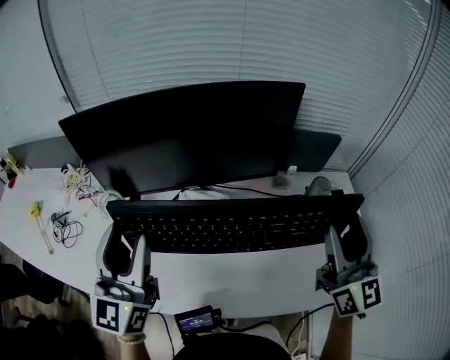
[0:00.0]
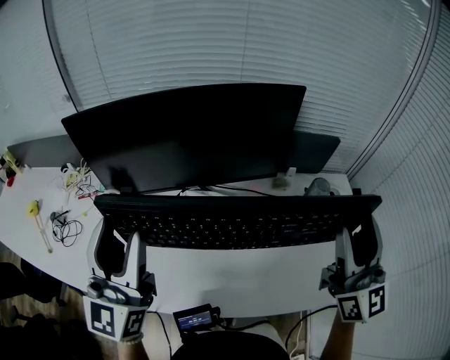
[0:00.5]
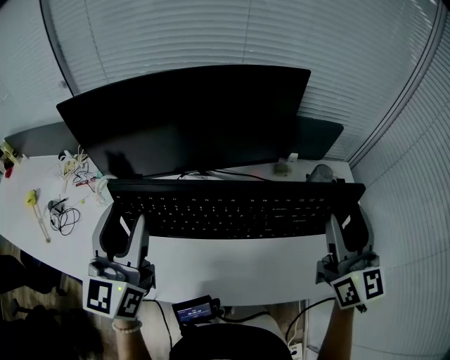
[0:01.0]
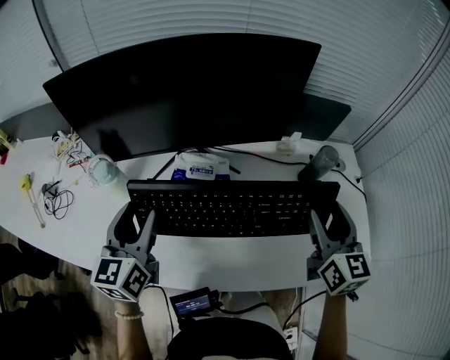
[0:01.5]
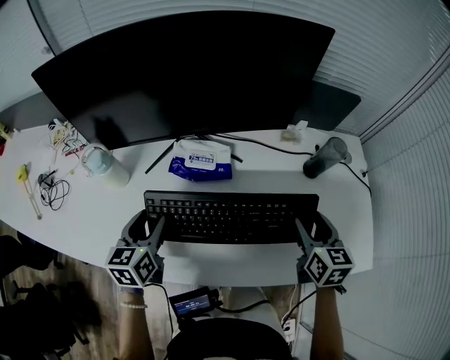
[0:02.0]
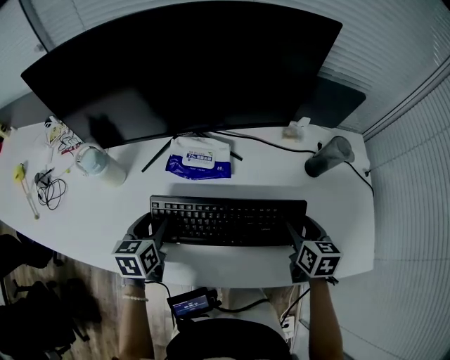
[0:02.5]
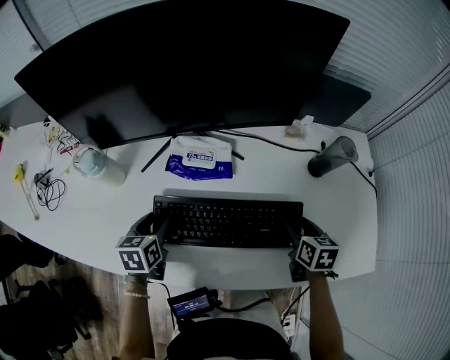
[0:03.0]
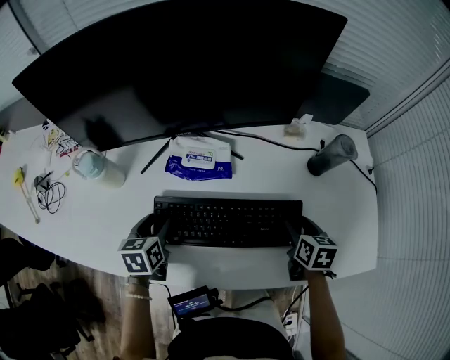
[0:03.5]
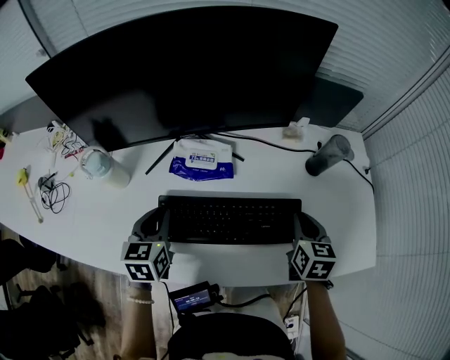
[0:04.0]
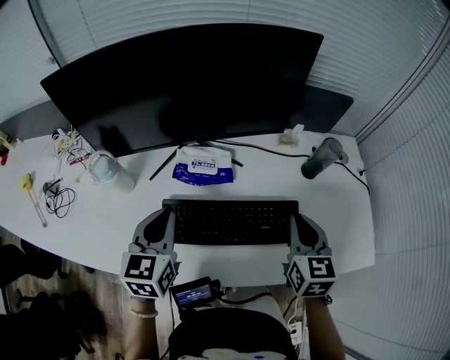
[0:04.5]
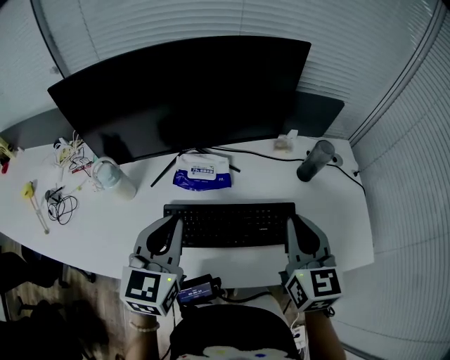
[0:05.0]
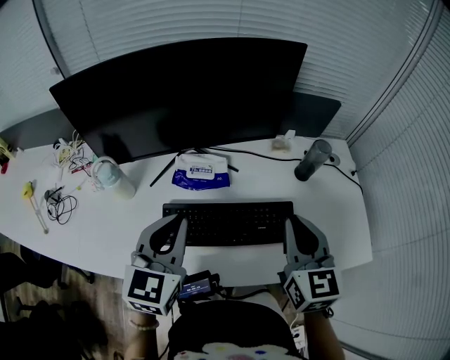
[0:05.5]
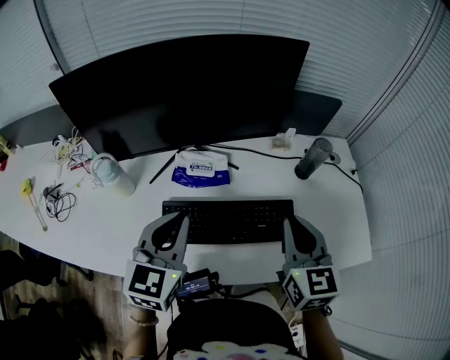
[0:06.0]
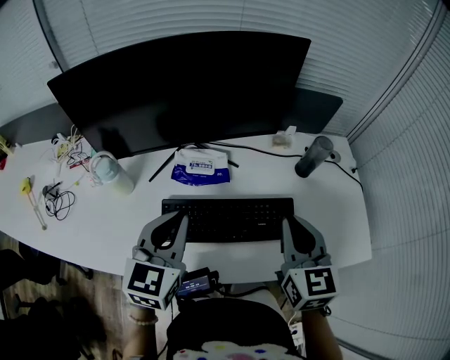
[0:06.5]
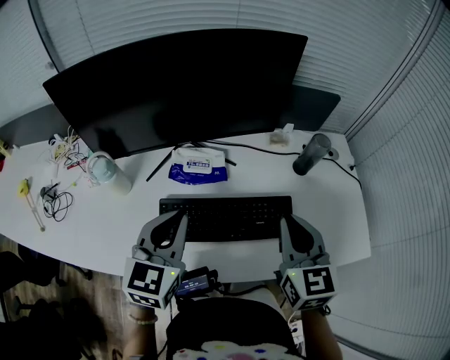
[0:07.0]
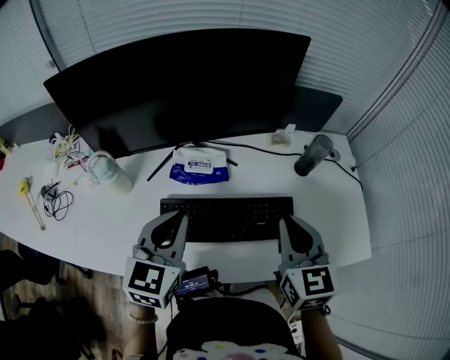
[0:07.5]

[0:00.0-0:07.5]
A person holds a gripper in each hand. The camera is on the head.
0:00.0 to 0:02.0: The grippers both shift downward by about 25 cm. The left gripper tips its fingers downward by about 40 degrees; the right gripper angles its fingers downward, by approximately 40 degrees.
0:02.0 to 0:04.0: The right gripper closes its fingers. Meanwhile the left gripper goes downward and returns, about 10 cm each way, and closes.
0:04.0 to 0:05.5: The right gripper travels upward and to the left by some 20 cm, and turns by about 20 degrees. The left gripper goes about 20 cm upward and to the right, and rotates some 30 degrees.
0:05.5 to 0:07.5: The grippers make only small movements.

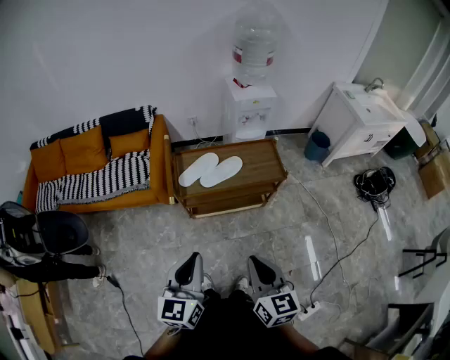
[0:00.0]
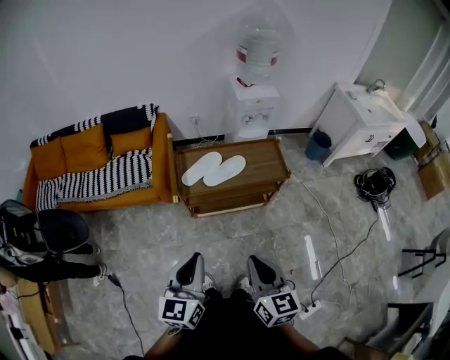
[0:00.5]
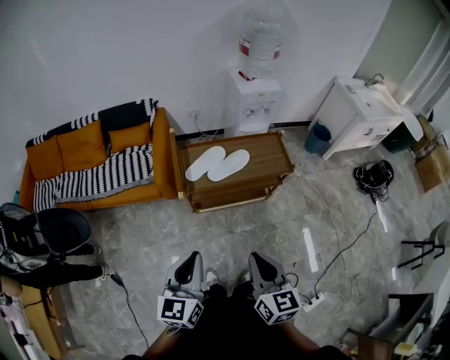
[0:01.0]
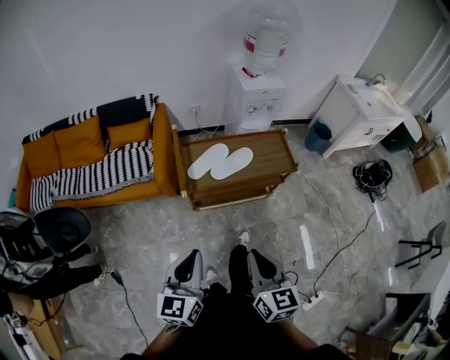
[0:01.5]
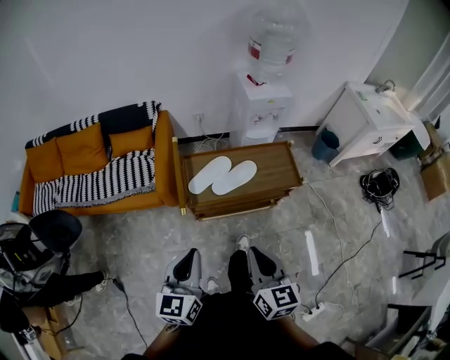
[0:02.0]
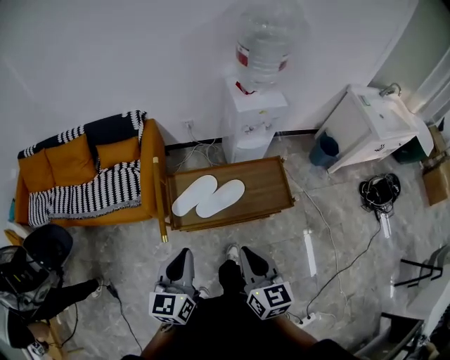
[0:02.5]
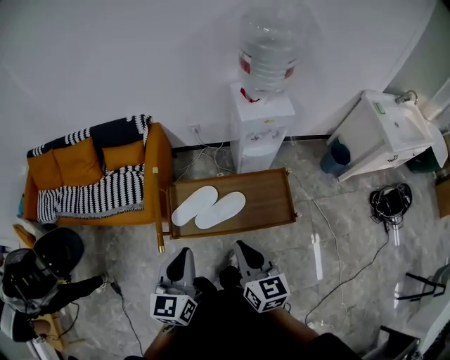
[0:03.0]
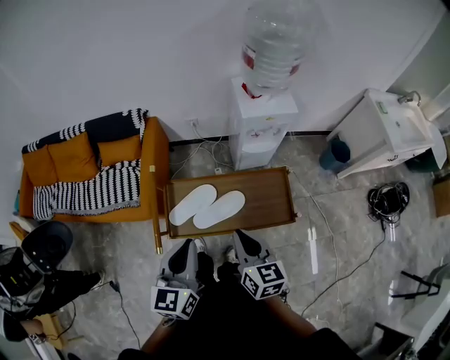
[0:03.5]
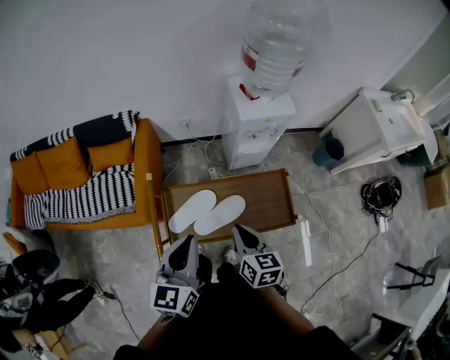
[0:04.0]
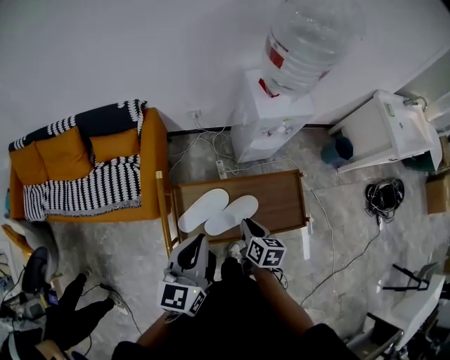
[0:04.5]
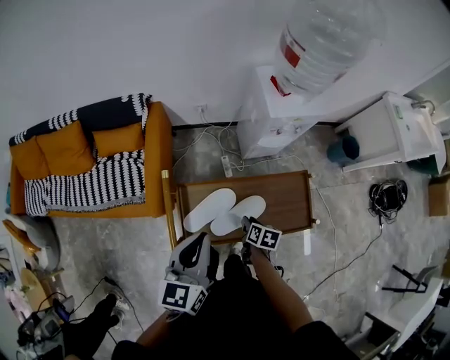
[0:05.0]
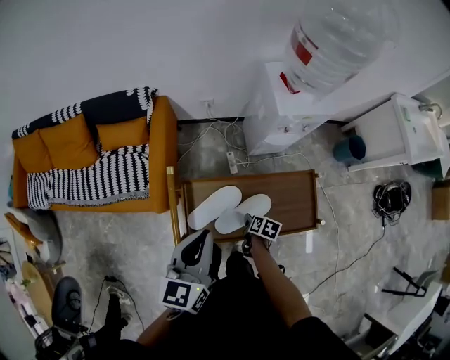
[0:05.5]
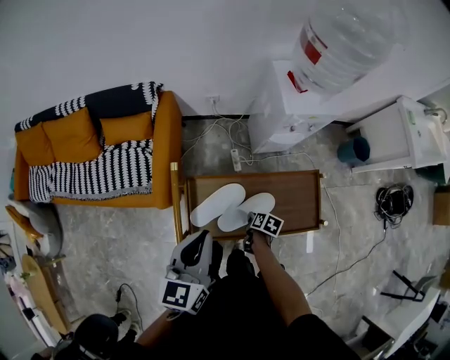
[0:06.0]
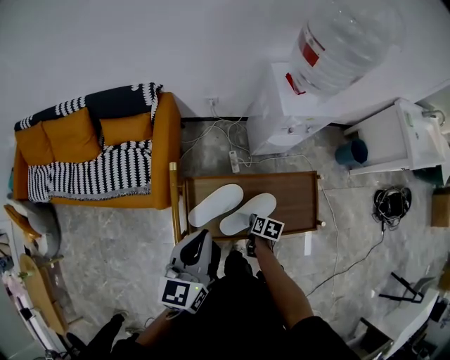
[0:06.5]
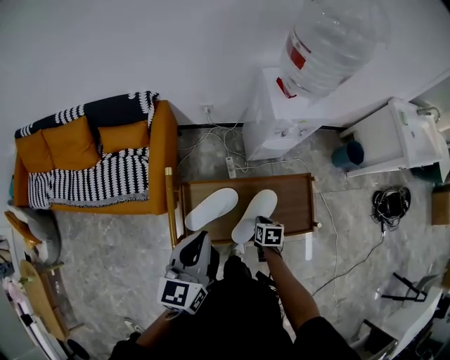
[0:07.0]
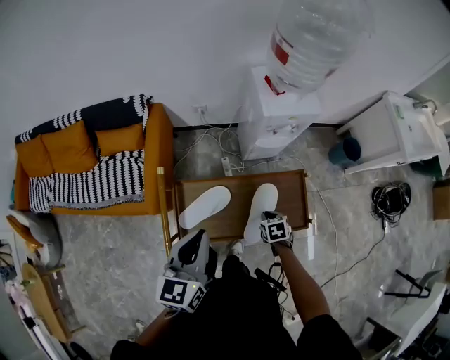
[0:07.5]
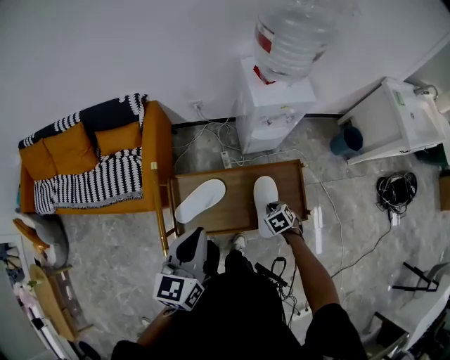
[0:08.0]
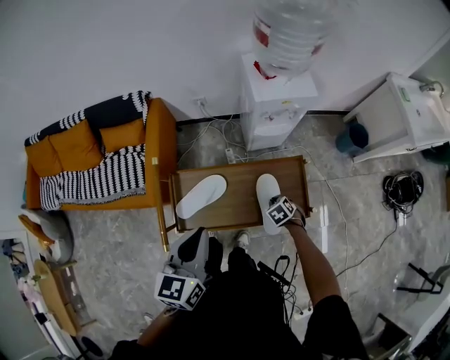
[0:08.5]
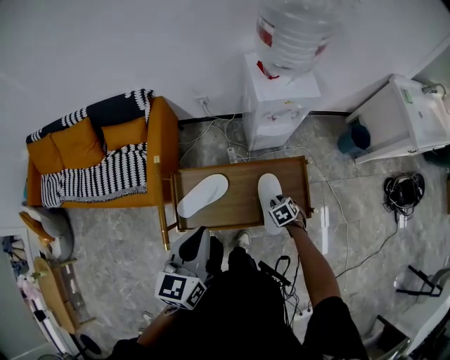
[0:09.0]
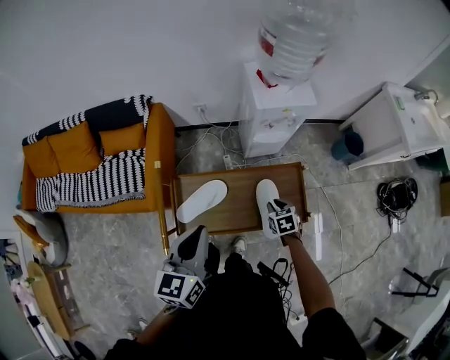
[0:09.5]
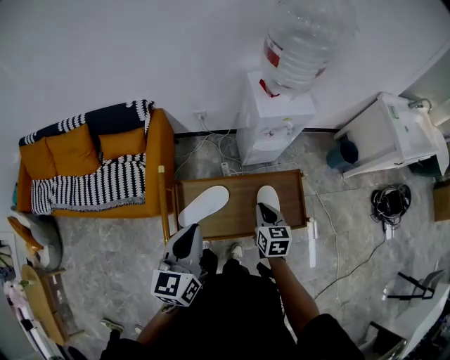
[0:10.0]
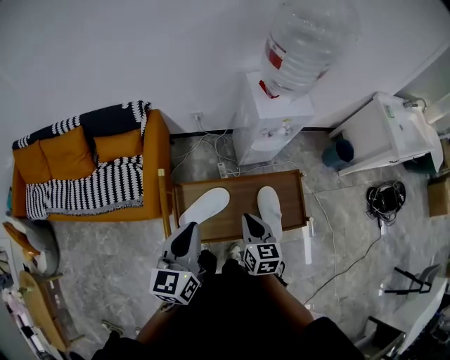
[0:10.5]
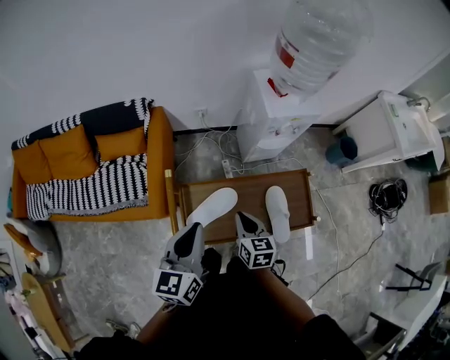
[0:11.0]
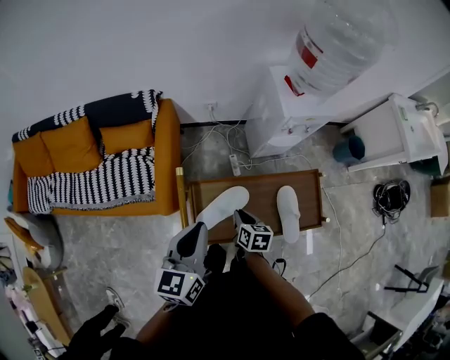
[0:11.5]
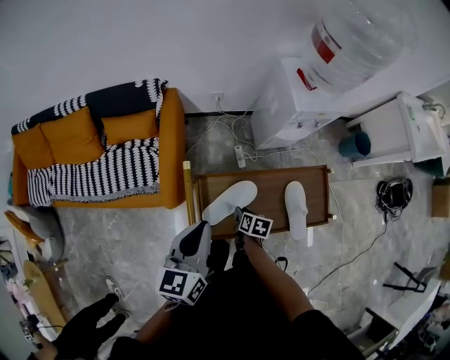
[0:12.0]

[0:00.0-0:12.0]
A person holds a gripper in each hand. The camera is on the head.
0:00.0 to 0:02.0: Both grippers move forward and to the left, some 15 cm.
0:02.0 to 0:04.0: The two grippers go some 30 cm forward.
0:04.0 to 0:06.0: The right gripper goes about 30 cm downward, and angles its fingers downward, by some 40 degrees, while the left gripper travels to the left and forward by approximately 10 cm.
0:06.0 to 0:08.0: The left gripper is displaced to the right by roughly 10 cm. Meanwhile the right gripper moves to the right and upward, some 15 cm, and rotates around the line of its fingers by about 60 degrees, counterclockwise from behind.
0:08.0 to 0:10.0: The right gripper moves upward and to the left, roughly 15 cm, and points its fingers roughly 30 degrees further upward.
0:10.0 to 0:12.0: The right gripper goes approximately 25 cm downward and to the left, and swivels approximately 40 degrees, while the left gripper shifts about 10 cm to the left and forward.

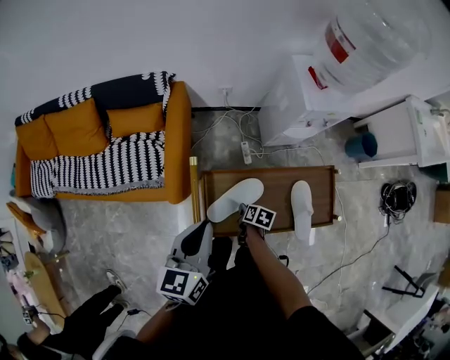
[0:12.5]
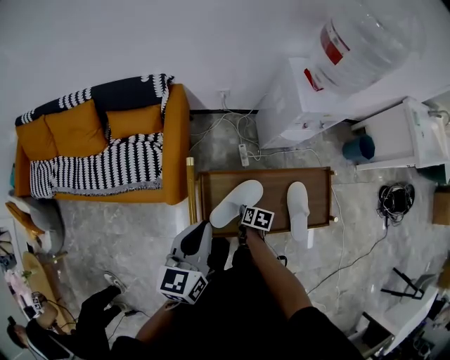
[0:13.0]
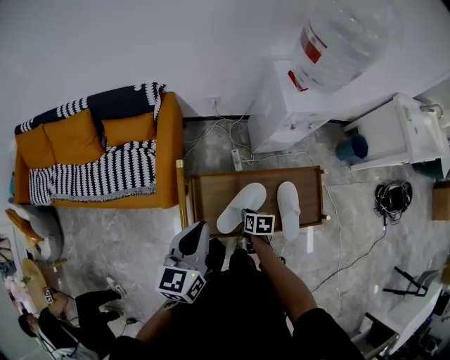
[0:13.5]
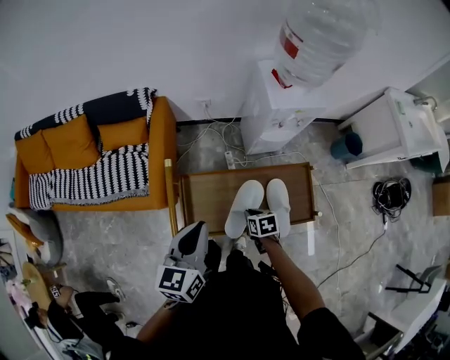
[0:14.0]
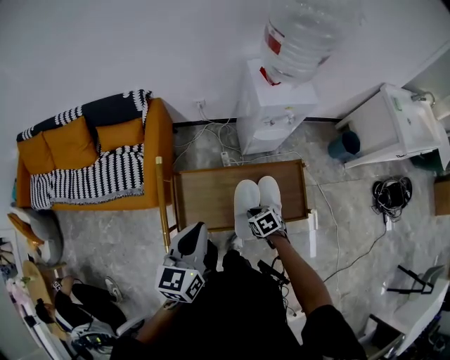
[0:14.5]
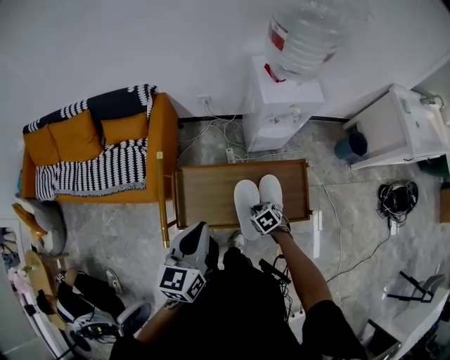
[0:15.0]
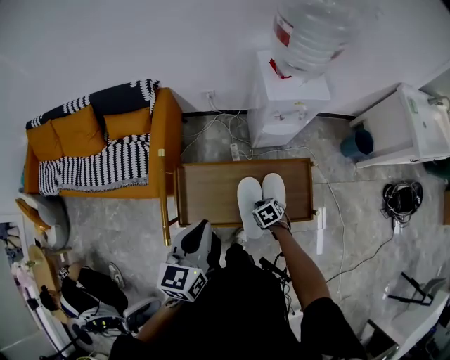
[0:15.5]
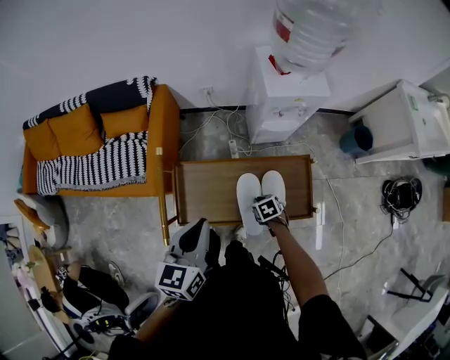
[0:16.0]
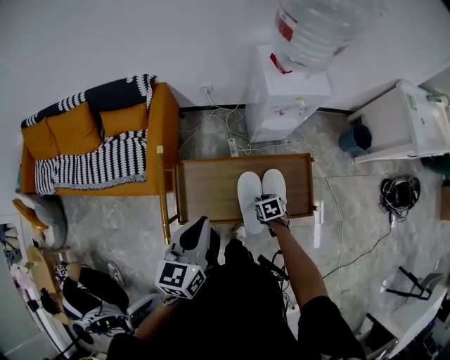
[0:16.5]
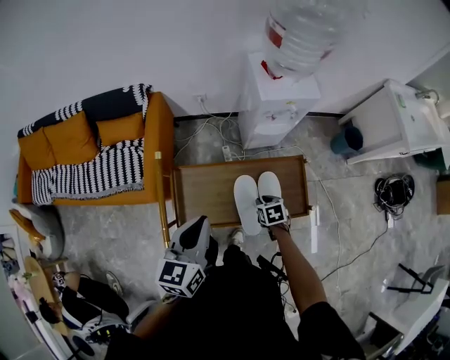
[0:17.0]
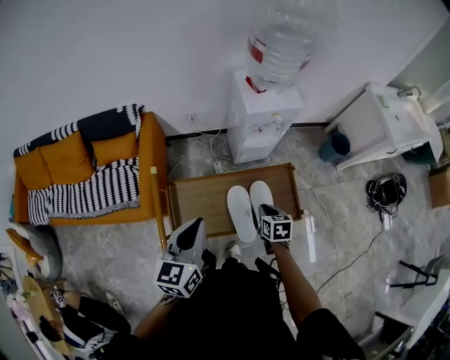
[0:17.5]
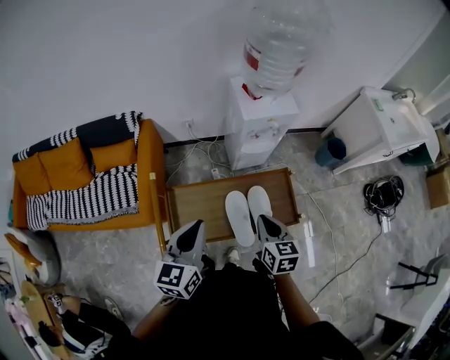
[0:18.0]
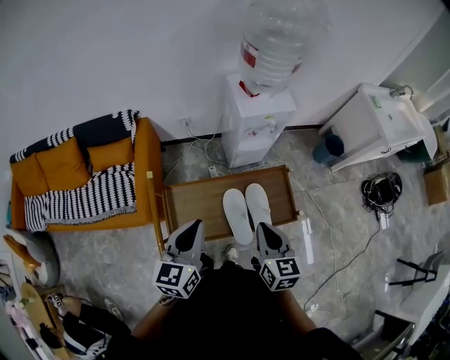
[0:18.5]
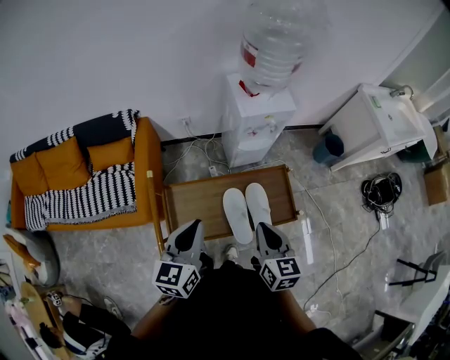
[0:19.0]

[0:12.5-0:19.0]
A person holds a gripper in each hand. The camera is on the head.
0:12.5 to 0:14.5: The right gripper shifts roughly 20 cm to the right, upward and backward, and twists about 50 degrees counterclockwise, seen from behind. The left gripper goes approximately 15 cm to the right and backward.
0:14.5 to 0:17.0: The right gripper is displaced to the right by approximately 5 cm.
0:17.0 to 0:19.0: The right gripper travels upward by approximately 30 cm, and tips its fingers upward by approximately 40 degrees.
